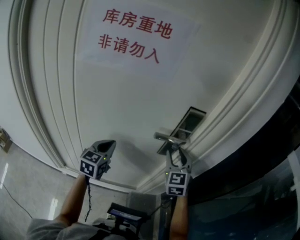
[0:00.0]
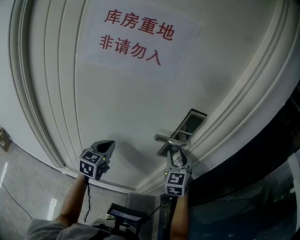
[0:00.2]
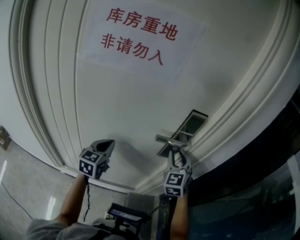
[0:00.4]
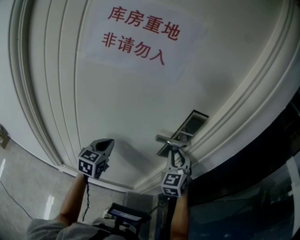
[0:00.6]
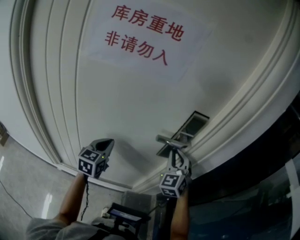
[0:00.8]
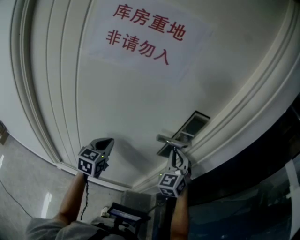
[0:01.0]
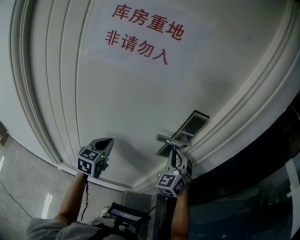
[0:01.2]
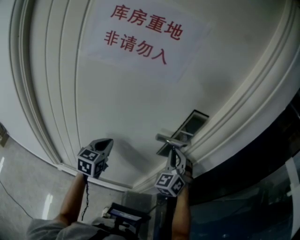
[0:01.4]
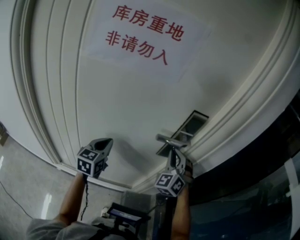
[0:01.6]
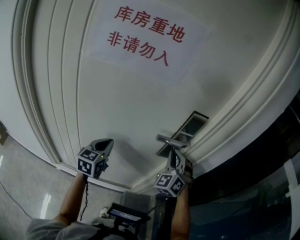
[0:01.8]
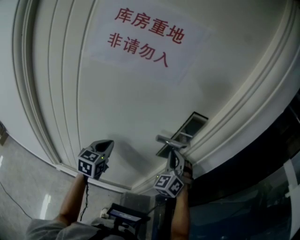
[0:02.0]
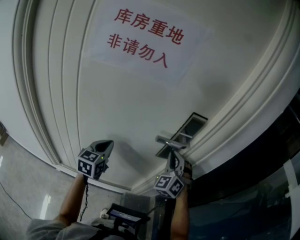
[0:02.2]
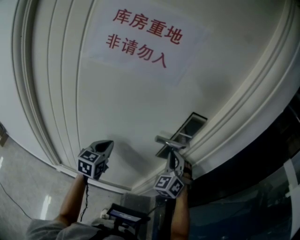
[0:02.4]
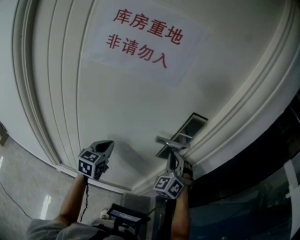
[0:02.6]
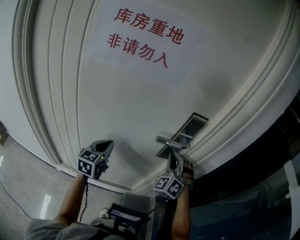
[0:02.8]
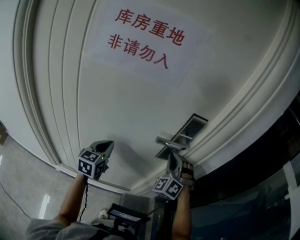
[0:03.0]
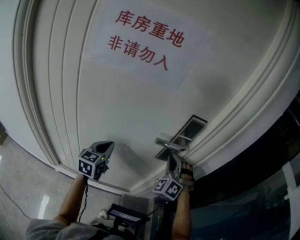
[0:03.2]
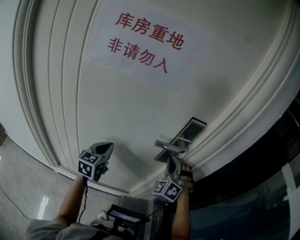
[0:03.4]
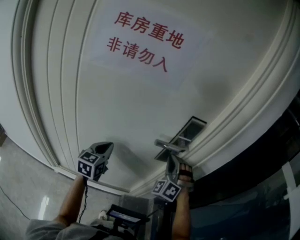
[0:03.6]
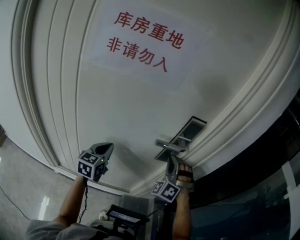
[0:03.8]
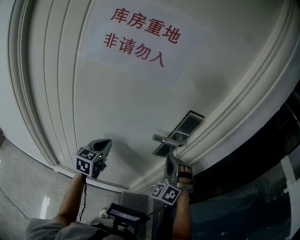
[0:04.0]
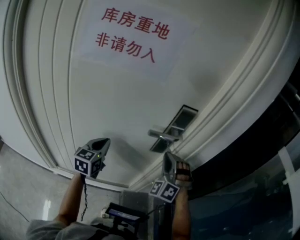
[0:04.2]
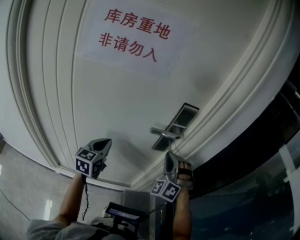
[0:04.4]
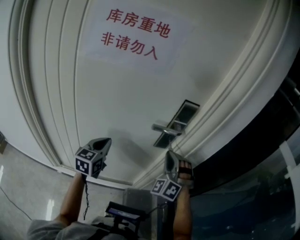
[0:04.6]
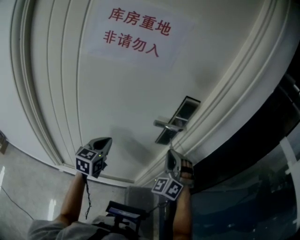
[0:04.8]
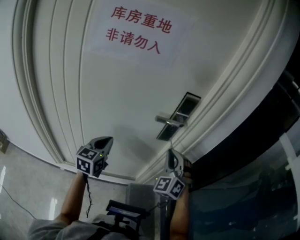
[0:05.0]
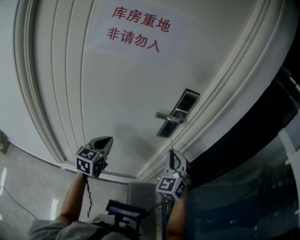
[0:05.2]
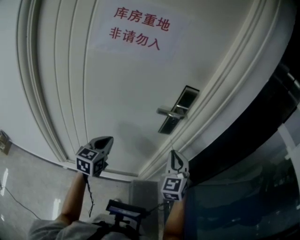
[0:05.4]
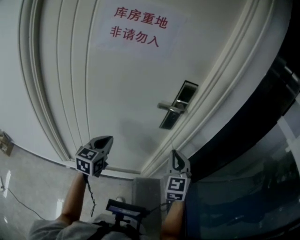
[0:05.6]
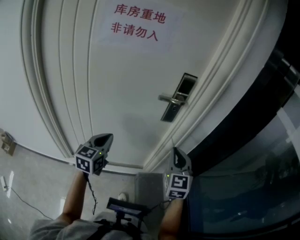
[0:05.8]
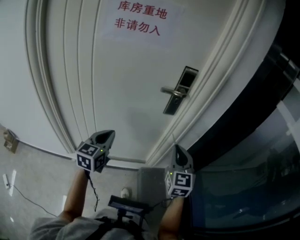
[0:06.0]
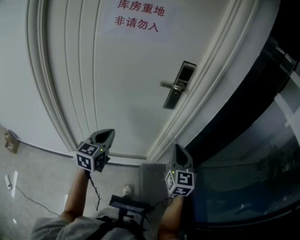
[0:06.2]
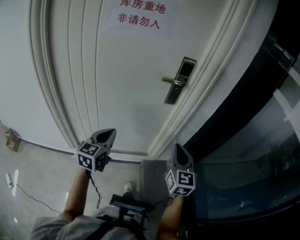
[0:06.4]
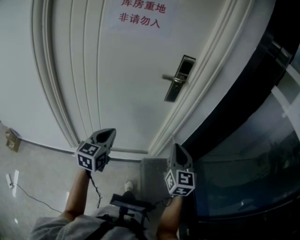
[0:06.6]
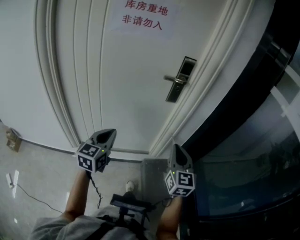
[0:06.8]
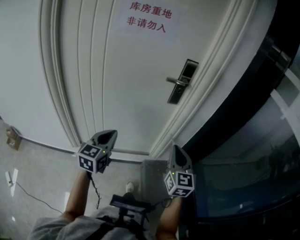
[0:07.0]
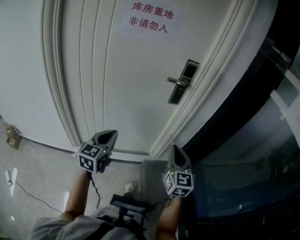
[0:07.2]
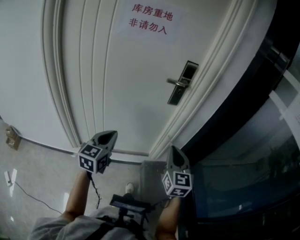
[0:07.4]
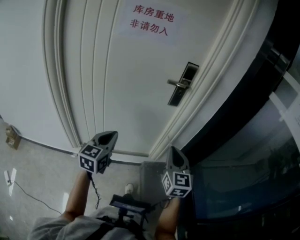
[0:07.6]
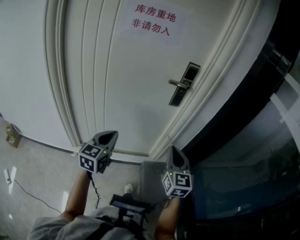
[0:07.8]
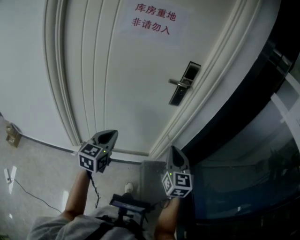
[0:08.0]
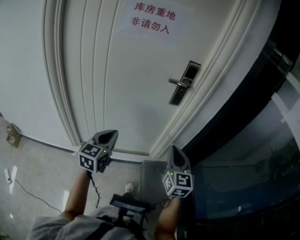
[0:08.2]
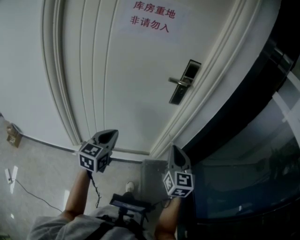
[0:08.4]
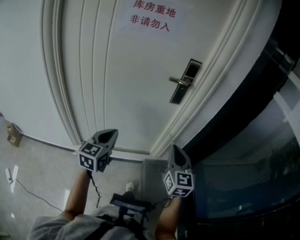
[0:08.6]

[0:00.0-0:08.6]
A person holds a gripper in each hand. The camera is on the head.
0:00.0 to 0:01.4: The right gripper swivels approximately 30 degrees, and closes.
0:01.4 to 0:02.8: The grippers make only small movements.
0:02.8 to 0:04.4: The right gripper shifts about 5 cm backward.
0:04.4 to 0:05.8: Both grippers travel together backward, about 15 cm. The right gripper twists approximately 60 degrees clockwise, seen from behind.
0:05.8 to 0:07.2: The two grippers go about 15 cm backward.
0:07.2 to 0:08.6: Neither gripper changes place.

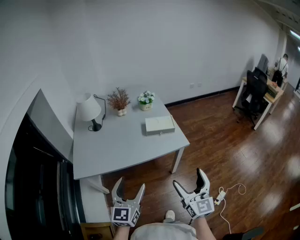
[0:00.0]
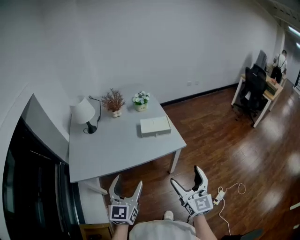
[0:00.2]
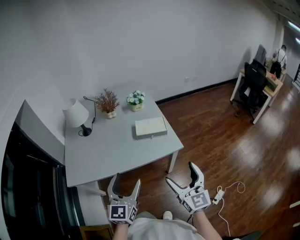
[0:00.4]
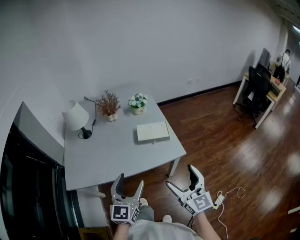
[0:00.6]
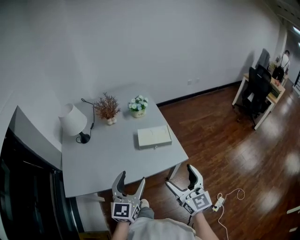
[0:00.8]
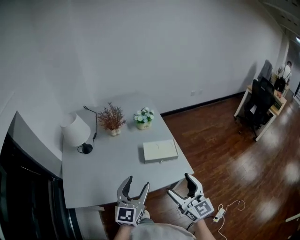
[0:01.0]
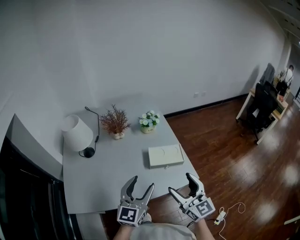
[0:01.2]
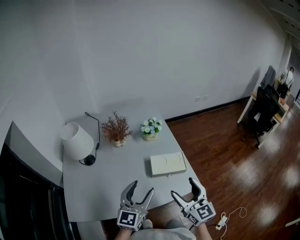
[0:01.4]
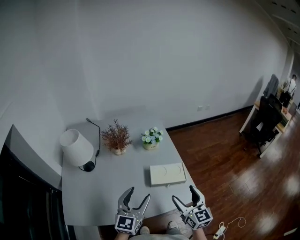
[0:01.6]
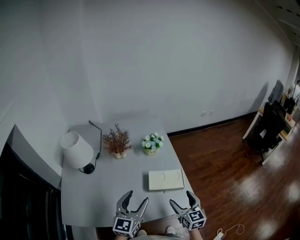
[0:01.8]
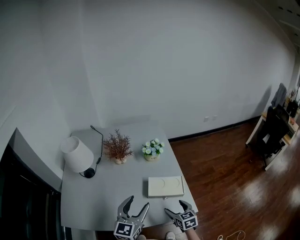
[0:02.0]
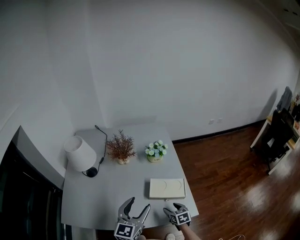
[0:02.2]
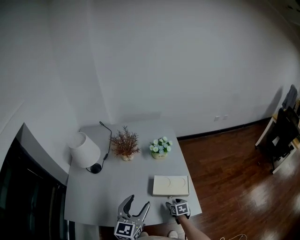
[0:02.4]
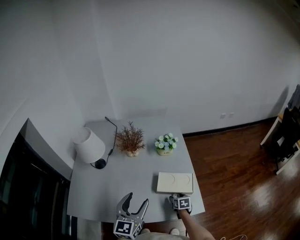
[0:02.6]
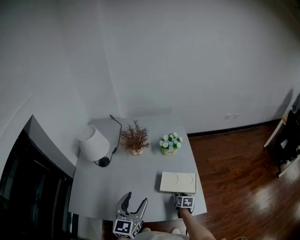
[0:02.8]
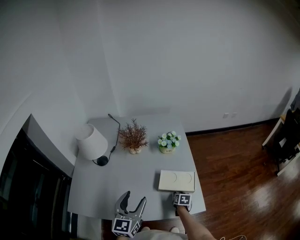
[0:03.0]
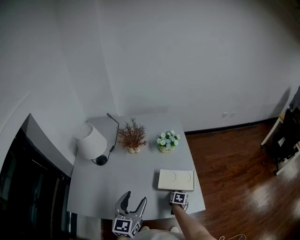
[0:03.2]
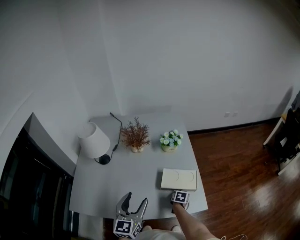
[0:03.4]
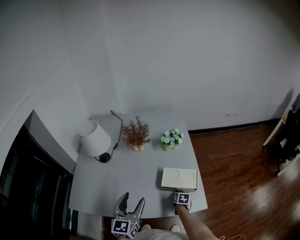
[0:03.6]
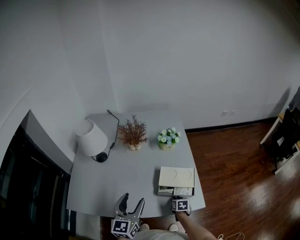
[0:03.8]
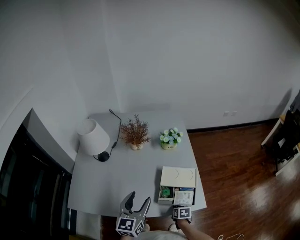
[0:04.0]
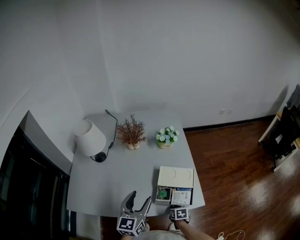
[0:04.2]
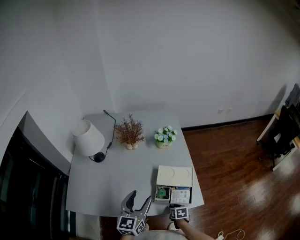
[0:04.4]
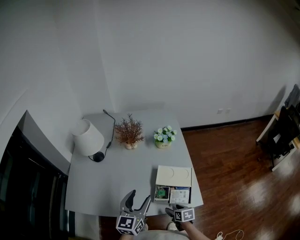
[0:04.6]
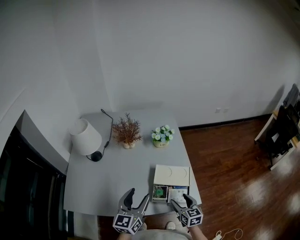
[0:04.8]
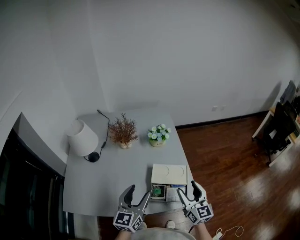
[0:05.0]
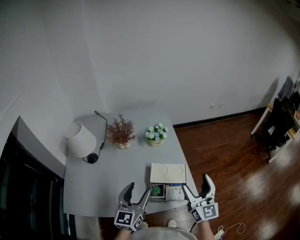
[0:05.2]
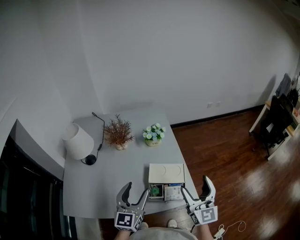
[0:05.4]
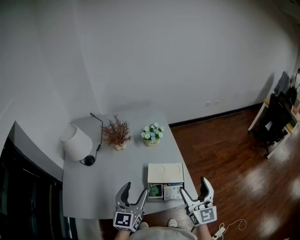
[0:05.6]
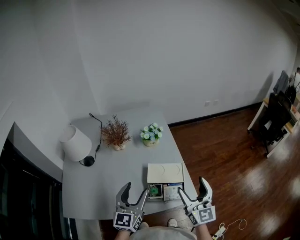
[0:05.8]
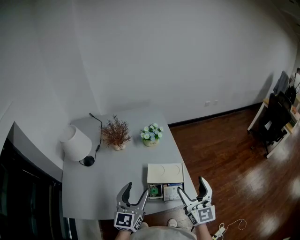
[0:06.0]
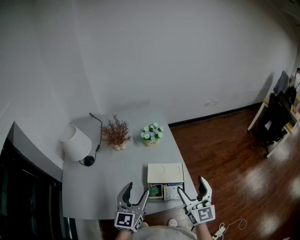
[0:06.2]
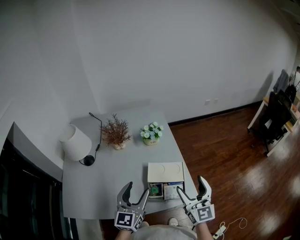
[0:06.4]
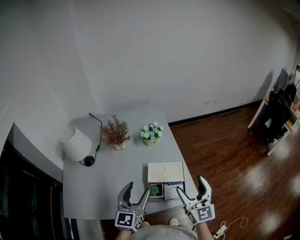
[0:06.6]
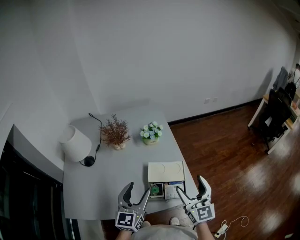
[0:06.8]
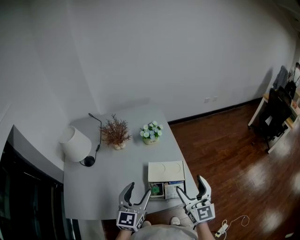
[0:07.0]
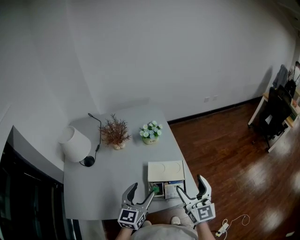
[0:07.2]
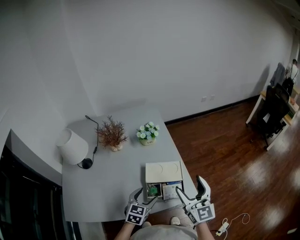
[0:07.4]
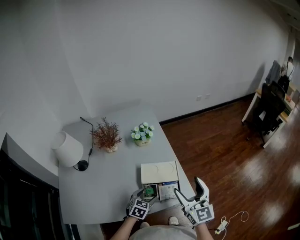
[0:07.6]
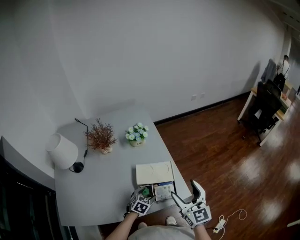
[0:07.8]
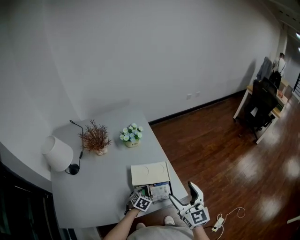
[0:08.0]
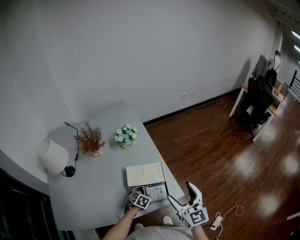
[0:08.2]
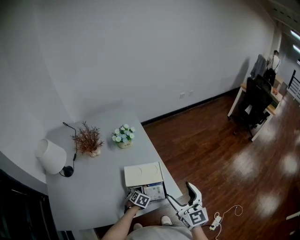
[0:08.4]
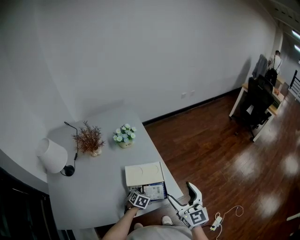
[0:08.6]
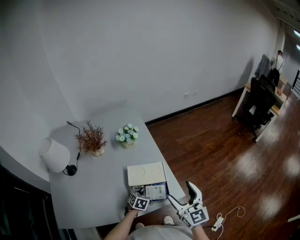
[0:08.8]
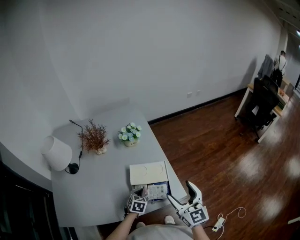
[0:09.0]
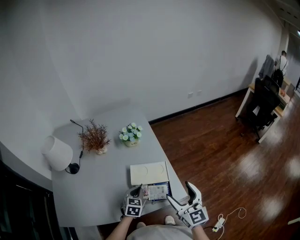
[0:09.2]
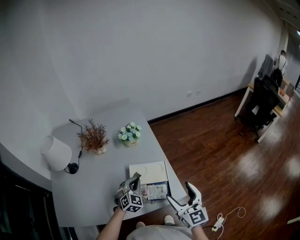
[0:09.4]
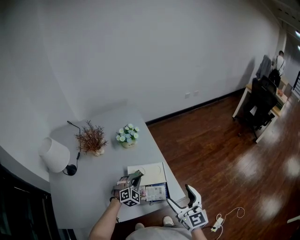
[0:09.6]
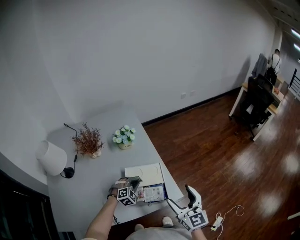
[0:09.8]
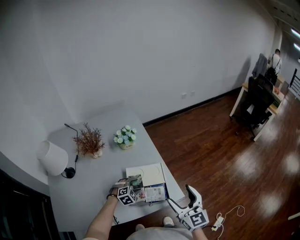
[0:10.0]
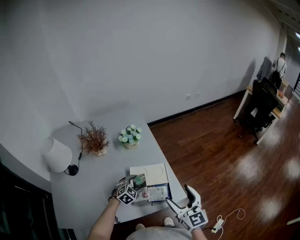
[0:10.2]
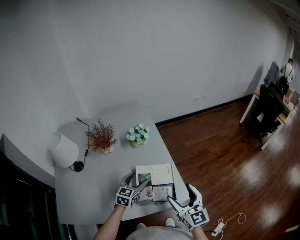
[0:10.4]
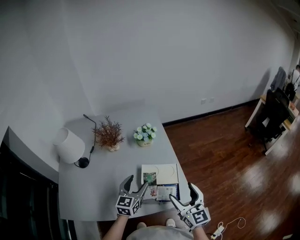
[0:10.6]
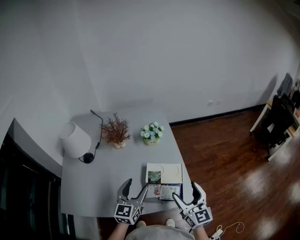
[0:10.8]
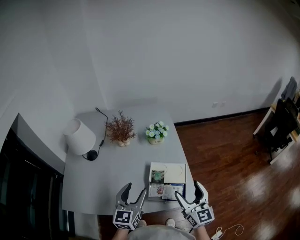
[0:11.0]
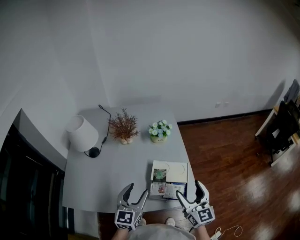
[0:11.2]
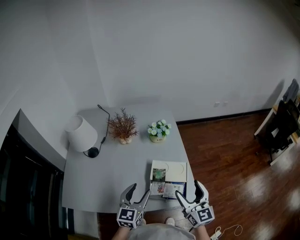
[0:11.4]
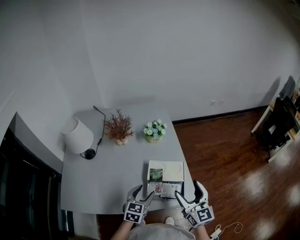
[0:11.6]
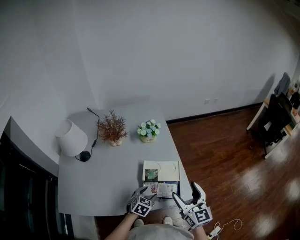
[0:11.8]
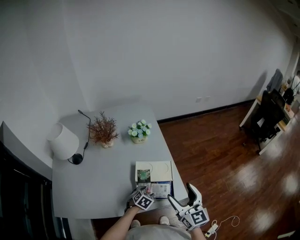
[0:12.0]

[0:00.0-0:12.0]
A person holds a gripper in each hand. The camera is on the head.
0:00.0 to 0:01.6: Both grippers move forward, approximately 35 cm.
0:01.6 to 0:03.0: The right gripper is displaced downward by roughly 30 cm, tilts its fingers approximately 50 degrees downward, and closes.
0:03.0 to 0:04.4: The right gripper heads backward, covering approximately 15 cm.
0:04.4 to 0:06.0: The left gripper moves some 5 cm. The right gripper travels upward by about 40 cm, angles its fingers upward, by some 70 degrees, and opens up.
0:06.0 to 0:07.6: The left gripper shifts roughly 25 cm downward, and angles its fingers downward, by roughly 40 degrees.
0:07.6 to 0:09.0: The left gripper reaches roughly 10 cm downward, then returns, and closes.
0:09.0 to 0:10.4: The left gripper swings up and down, approximately 10 cm each way, with 2 reversals, turns by some 30 degrees, and opens.
0:10.4 to 0:12.0: The left gripper travels downward and backward by about 15 cm, and tips its fingers downward by about 30 degrees.

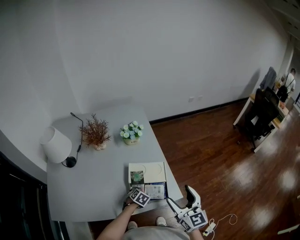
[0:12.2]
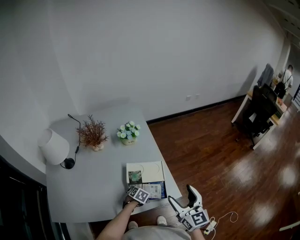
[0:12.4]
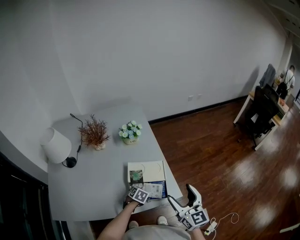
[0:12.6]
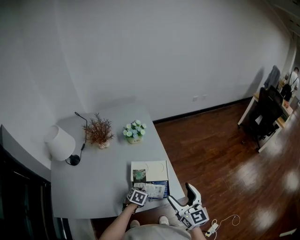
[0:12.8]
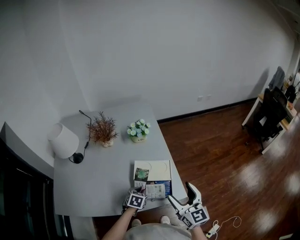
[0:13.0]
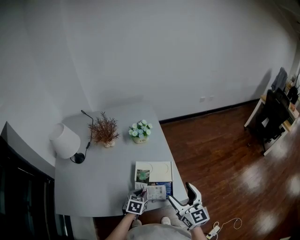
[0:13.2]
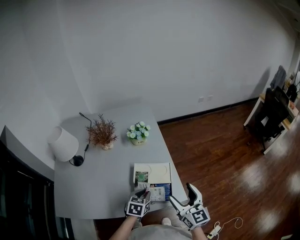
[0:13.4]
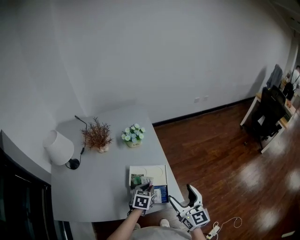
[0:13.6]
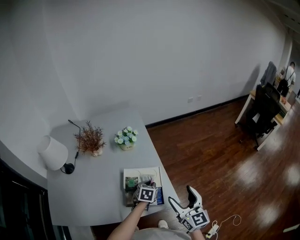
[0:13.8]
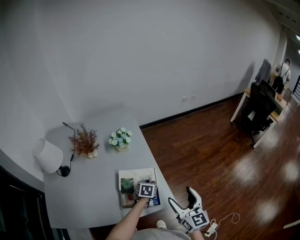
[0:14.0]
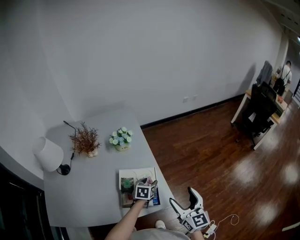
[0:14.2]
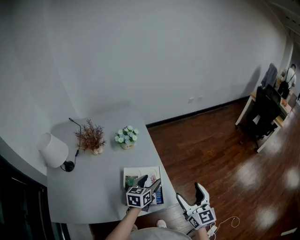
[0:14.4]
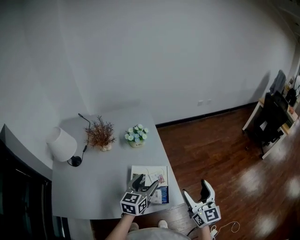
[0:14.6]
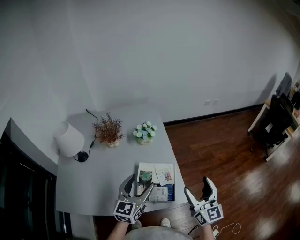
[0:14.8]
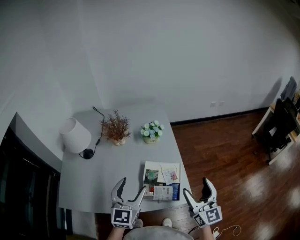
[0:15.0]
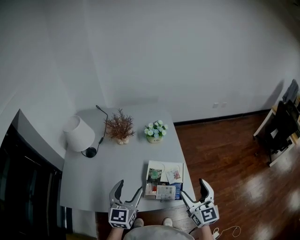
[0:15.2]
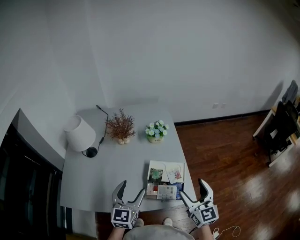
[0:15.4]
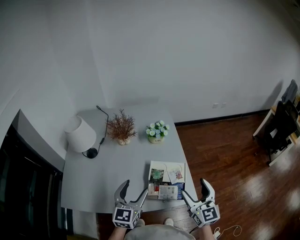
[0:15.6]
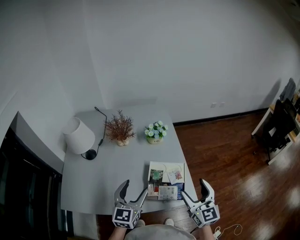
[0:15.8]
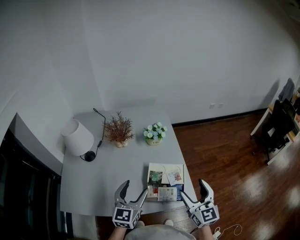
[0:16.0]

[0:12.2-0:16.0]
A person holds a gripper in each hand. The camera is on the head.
0:12.2 to 0:13.4: The left gripper heads upward, covering approximately 15 cm, rotates about 30 degrees, and closes up.
0:13.4 to 0:14.8: The right gripper heads upward, covering about 5 cm; the left gripper moves upward, about 20 cm, tips its fingers upward by approximately 40 degrees, and opens its fingers.
0:14.8 to 0:16.0: Both grippers move to the left, some 10 cm.
